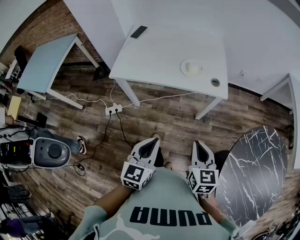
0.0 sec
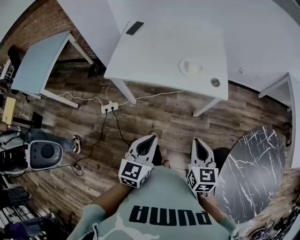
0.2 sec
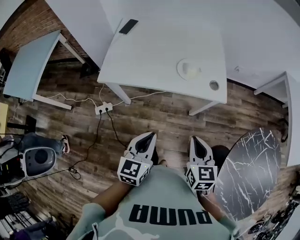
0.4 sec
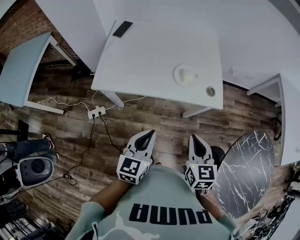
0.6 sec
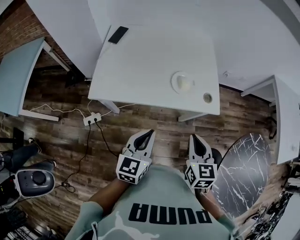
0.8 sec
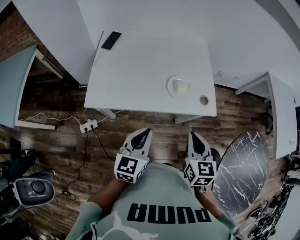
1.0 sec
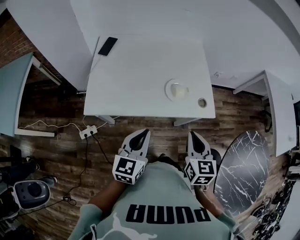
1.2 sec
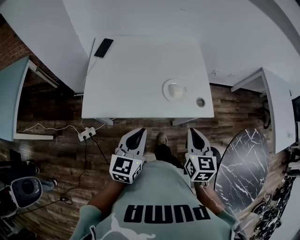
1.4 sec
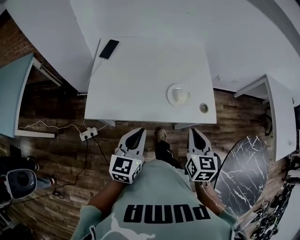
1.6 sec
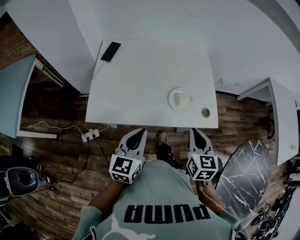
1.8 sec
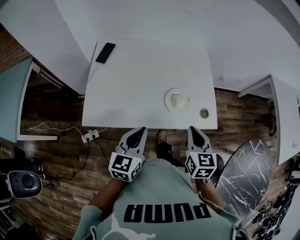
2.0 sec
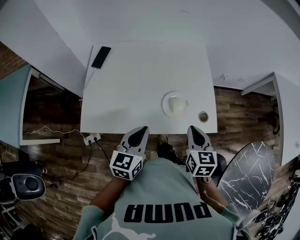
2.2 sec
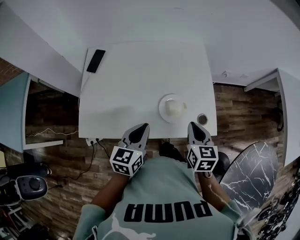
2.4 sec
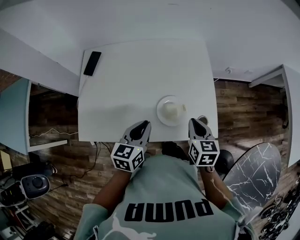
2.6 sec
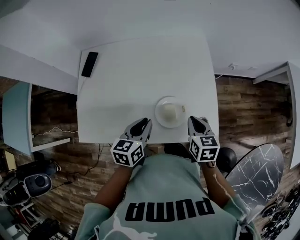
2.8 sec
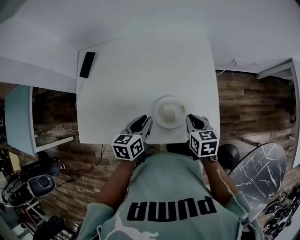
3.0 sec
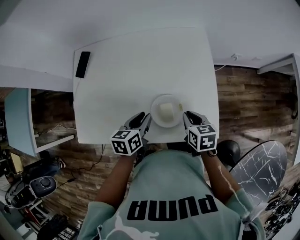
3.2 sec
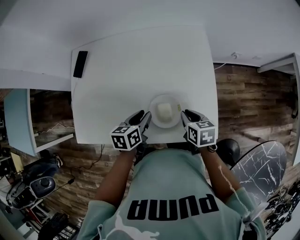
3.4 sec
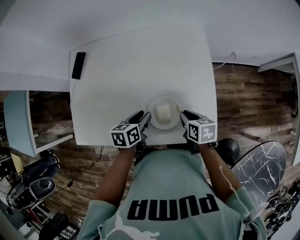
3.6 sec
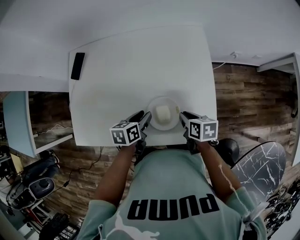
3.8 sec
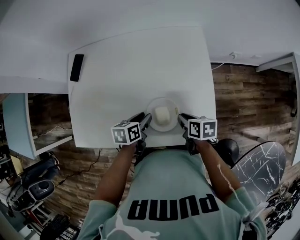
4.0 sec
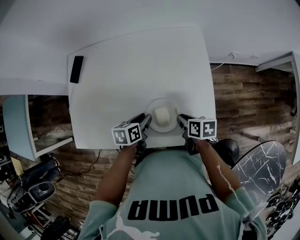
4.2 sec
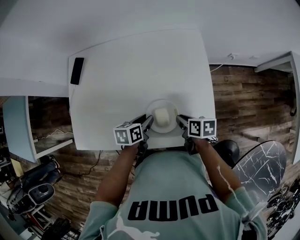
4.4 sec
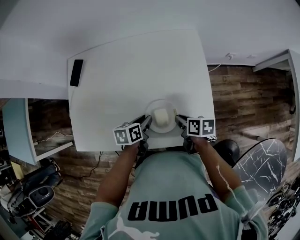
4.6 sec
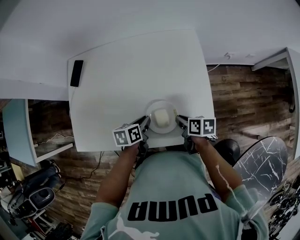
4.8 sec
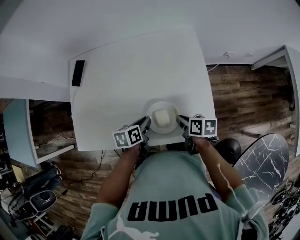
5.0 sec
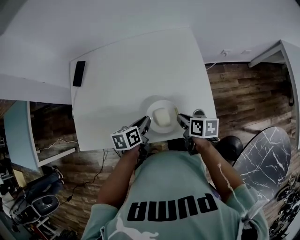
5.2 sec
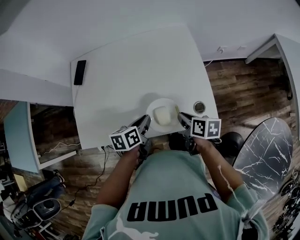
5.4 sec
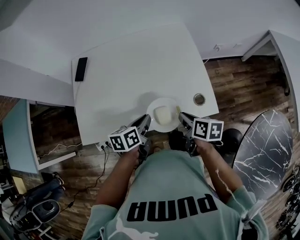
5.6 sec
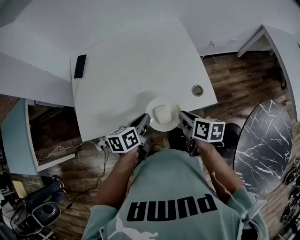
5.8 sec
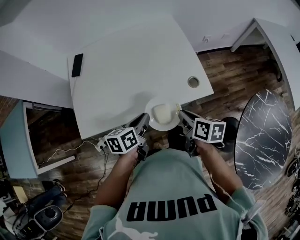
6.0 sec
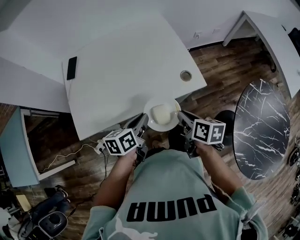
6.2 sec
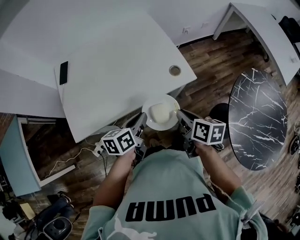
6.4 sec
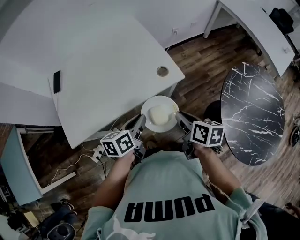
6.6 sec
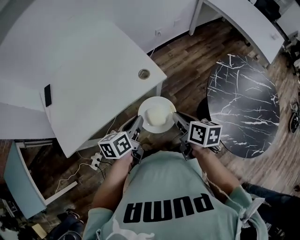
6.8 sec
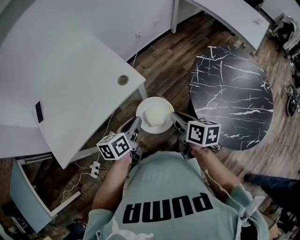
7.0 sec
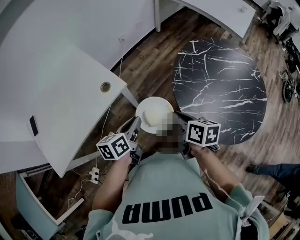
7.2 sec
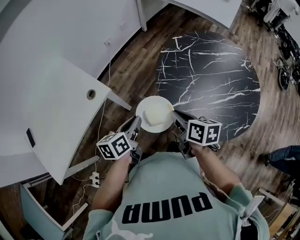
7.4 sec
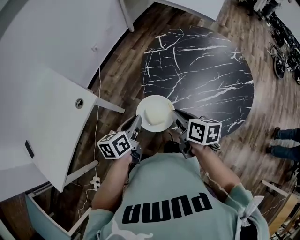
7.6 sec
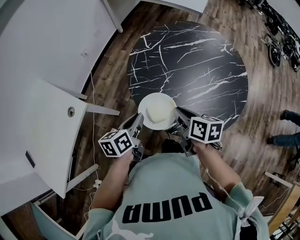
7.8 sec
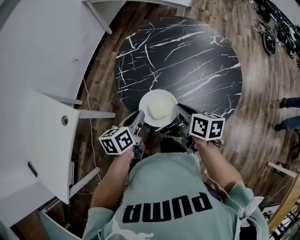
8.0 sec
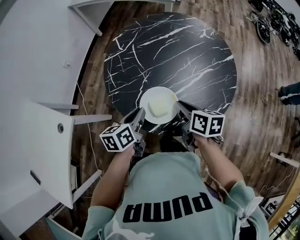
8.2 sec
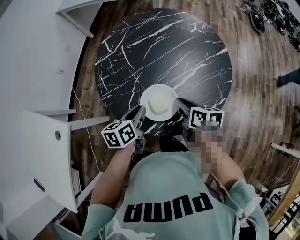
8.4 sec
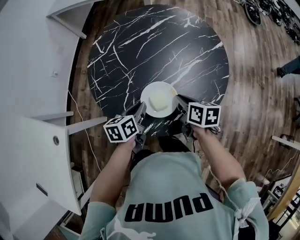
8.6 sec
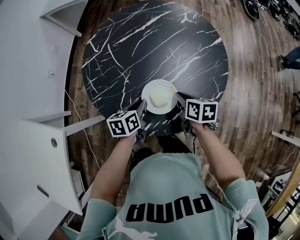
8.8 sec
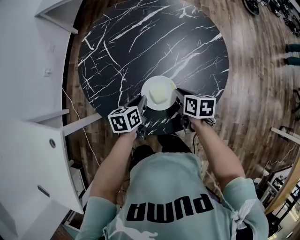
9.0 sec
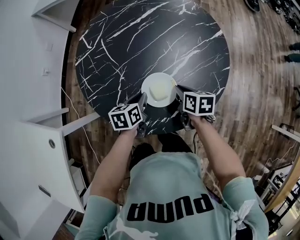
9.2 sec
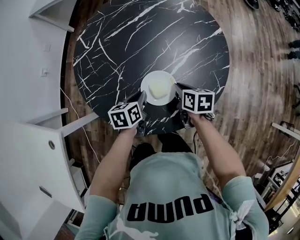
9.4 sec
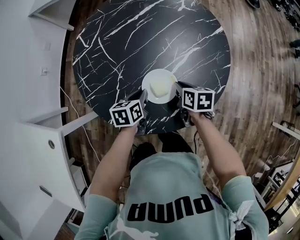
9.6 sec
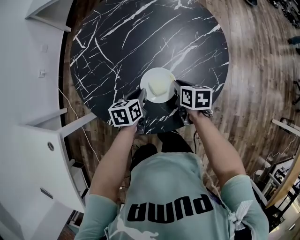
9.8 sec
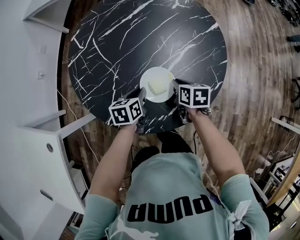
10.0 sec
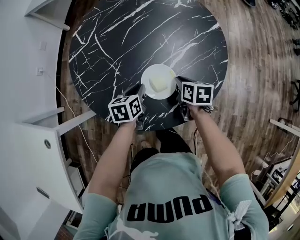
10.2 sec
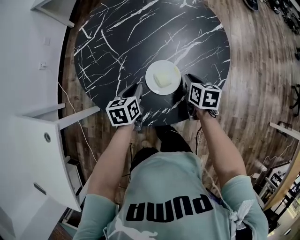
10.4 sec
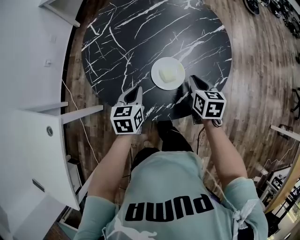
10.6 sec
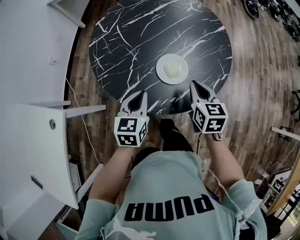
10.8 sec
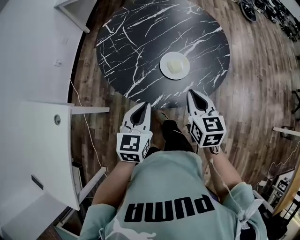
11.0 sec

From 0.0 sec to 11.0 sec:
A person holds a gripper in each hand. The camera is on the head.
From 0.0 sec to 1.6 sec: Both grippers move forward and to the left, about 30 cm.
From 1.6 sec to 3.2 sec: The right gripper is displaced forward and downward by about 25 cm, and changes its angle by roughly 30 degrees. Meanwhile the left gripper goes about 30 cm forward, downward and to the right, swivels roughly 30 degrees, and opens.
From 3.2 sec to 4.8 sec: The left gripper moves downward, roughly 5 cm; the right gripper moves some 5 cm, and turns by some 30 degrees.
From 4.8 sec to 6.2 sec: Both grippers move backward and upward, approximately 25 cm. The left gripper changes its angle by some 20 degrees; the right gripper turns by about 30 degrees.
From 6.2 sec to 7.8 sec: Both grippers are carried about 50 cm. The left gripper rotates about 40 degrees, while the right gripper turns by roughly 40 degrees.
From 7.8 sec to 9.4 sec: Both grippers move to the right, downward and forward, roughly 25 cm. The right gripper changes its angle by about 20 degrees; the left gripper swivels about 30 degrees.
From 9.4 sec to 11.0 sec: The two grippers go some 25 cm backward and upward. The left gripper turns by about 40 degrees. The right gripper rotates some 30 degrees.

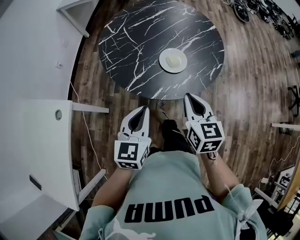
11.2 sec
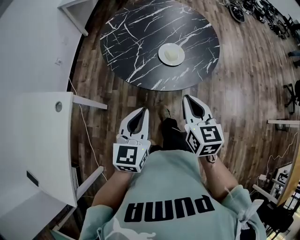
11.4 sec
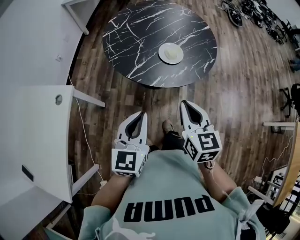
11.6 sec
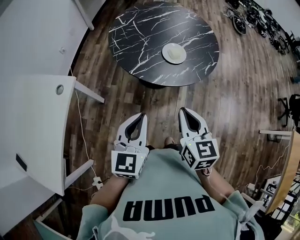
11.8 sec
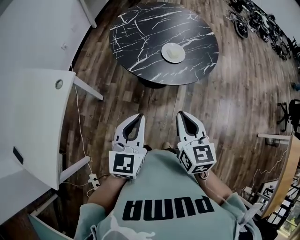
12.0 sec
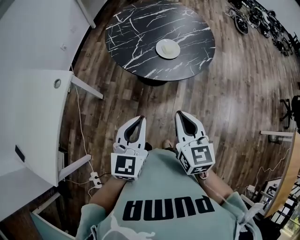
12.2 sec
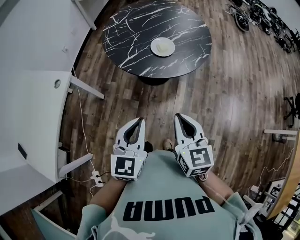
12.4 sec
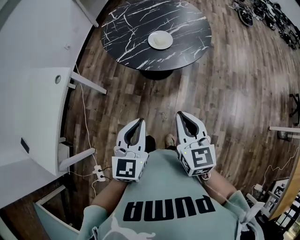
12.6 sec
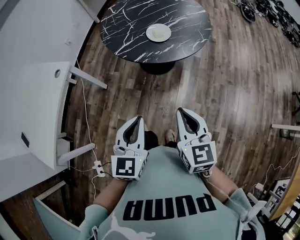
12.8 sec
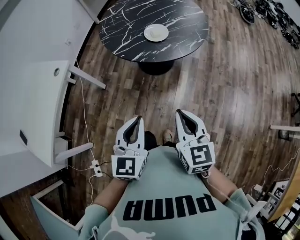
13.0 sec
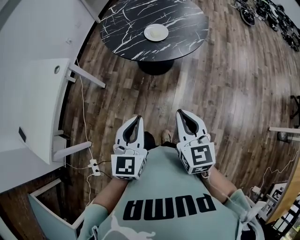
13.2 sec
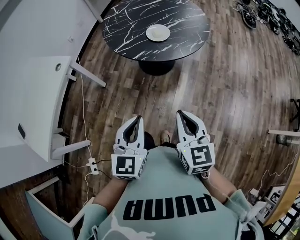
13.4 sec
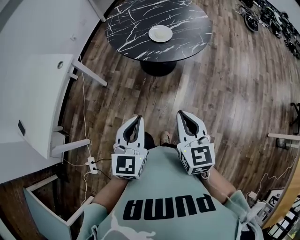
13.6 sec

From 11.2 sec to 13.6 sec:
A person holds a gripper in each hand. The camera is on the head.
From 11.2 sec to 12.4 sec: Both grippers move backward, some 20 cm.
From 12.4 sec to 13.6 sec: The two grippers go roughly 10 cm backward and to the right.

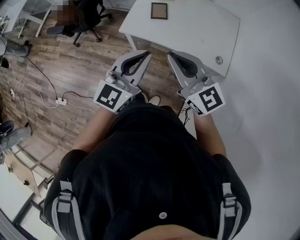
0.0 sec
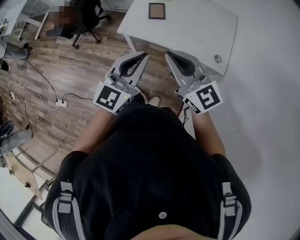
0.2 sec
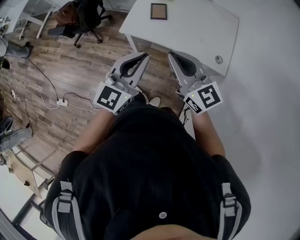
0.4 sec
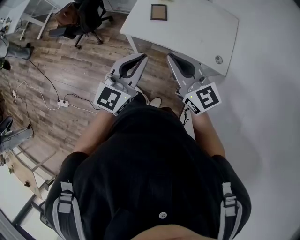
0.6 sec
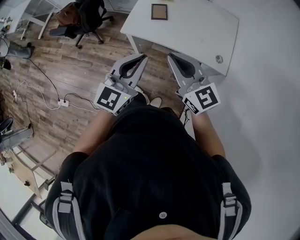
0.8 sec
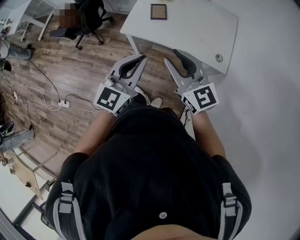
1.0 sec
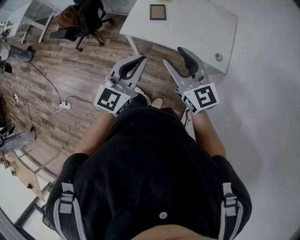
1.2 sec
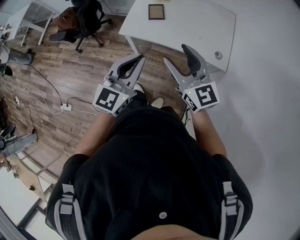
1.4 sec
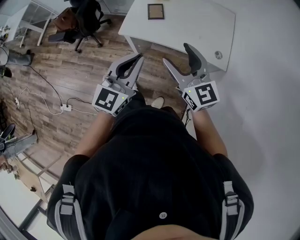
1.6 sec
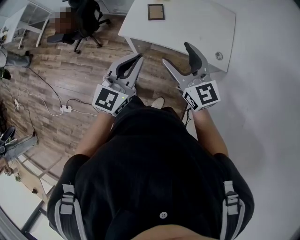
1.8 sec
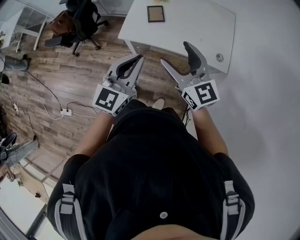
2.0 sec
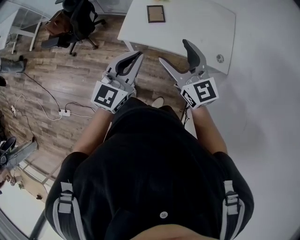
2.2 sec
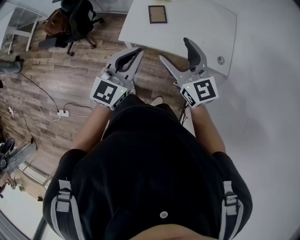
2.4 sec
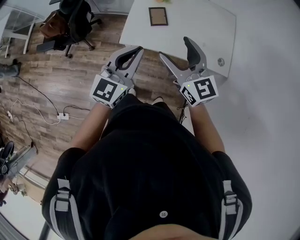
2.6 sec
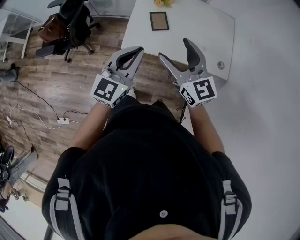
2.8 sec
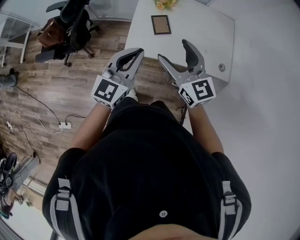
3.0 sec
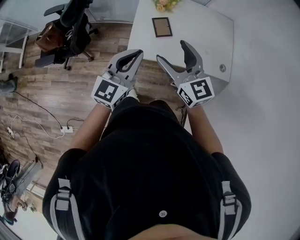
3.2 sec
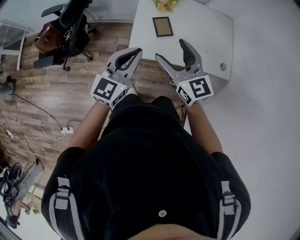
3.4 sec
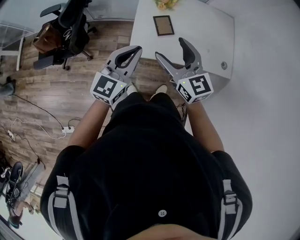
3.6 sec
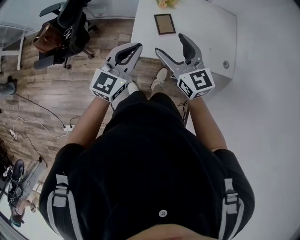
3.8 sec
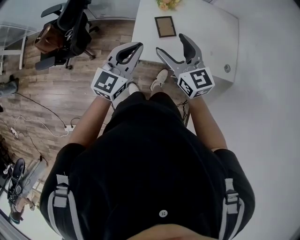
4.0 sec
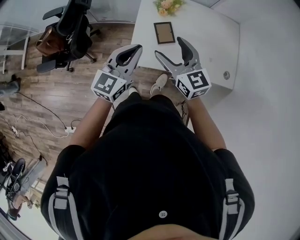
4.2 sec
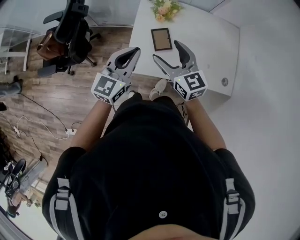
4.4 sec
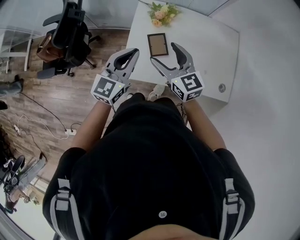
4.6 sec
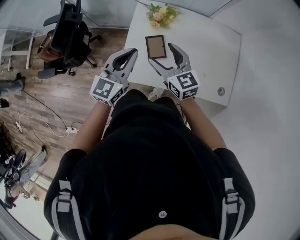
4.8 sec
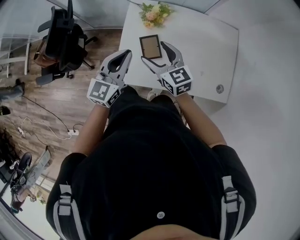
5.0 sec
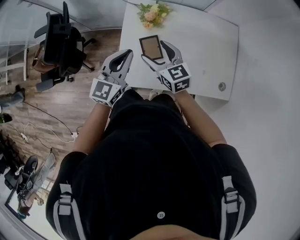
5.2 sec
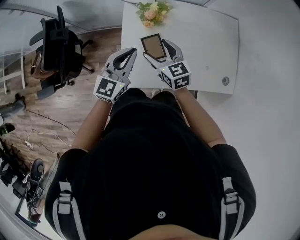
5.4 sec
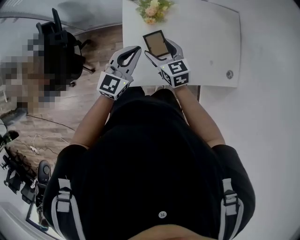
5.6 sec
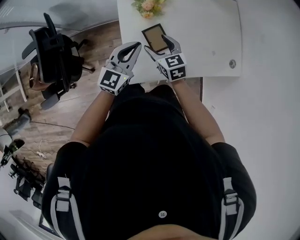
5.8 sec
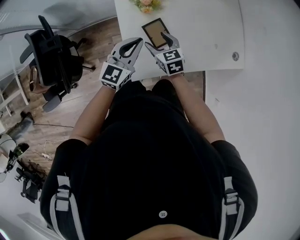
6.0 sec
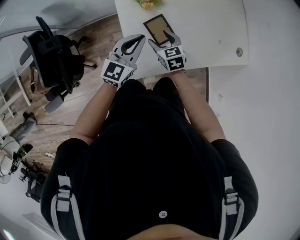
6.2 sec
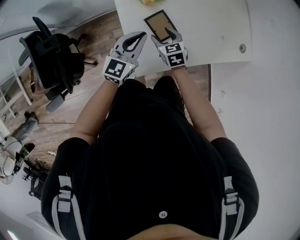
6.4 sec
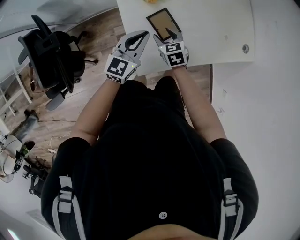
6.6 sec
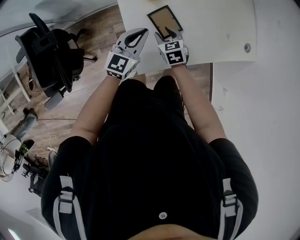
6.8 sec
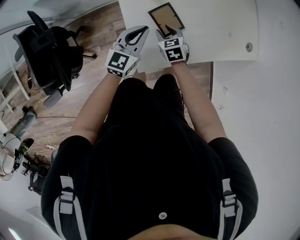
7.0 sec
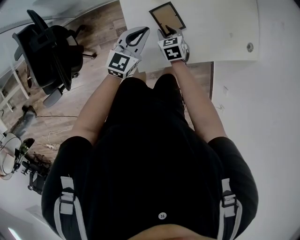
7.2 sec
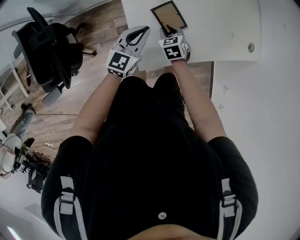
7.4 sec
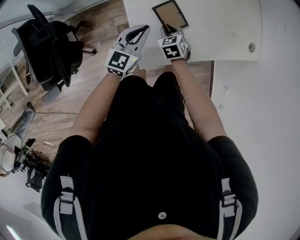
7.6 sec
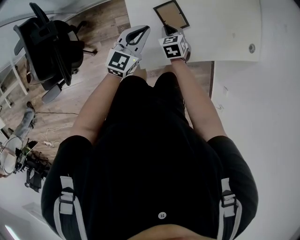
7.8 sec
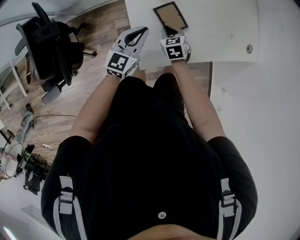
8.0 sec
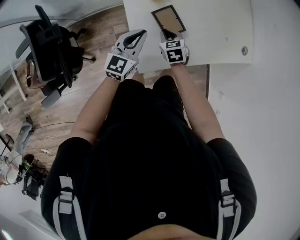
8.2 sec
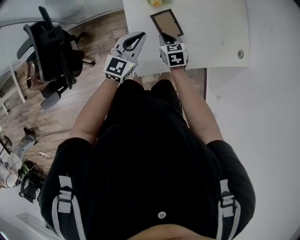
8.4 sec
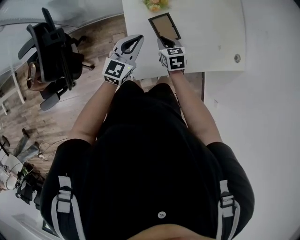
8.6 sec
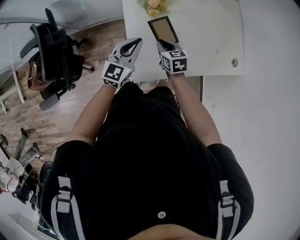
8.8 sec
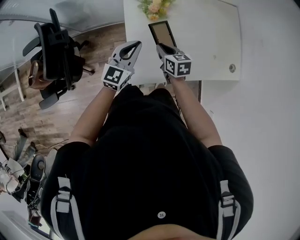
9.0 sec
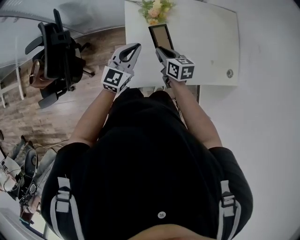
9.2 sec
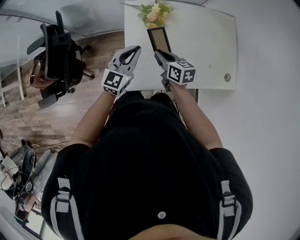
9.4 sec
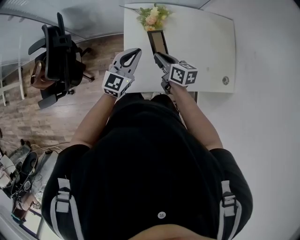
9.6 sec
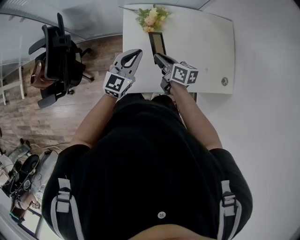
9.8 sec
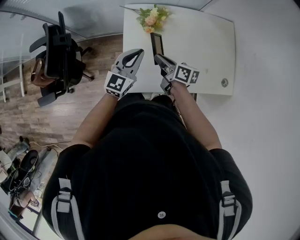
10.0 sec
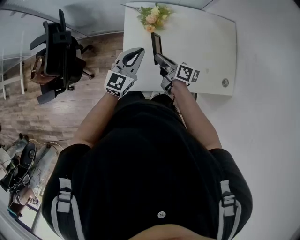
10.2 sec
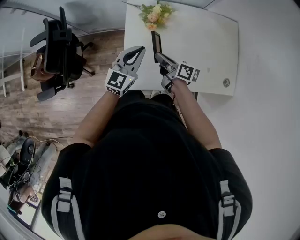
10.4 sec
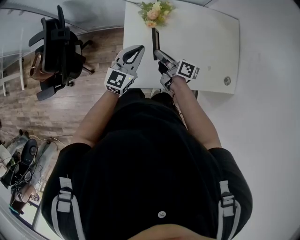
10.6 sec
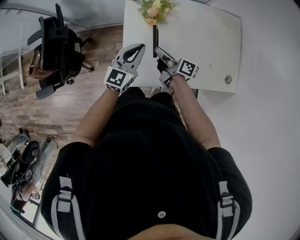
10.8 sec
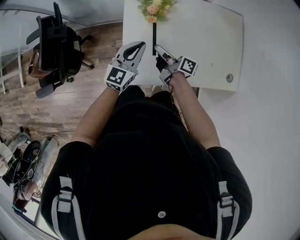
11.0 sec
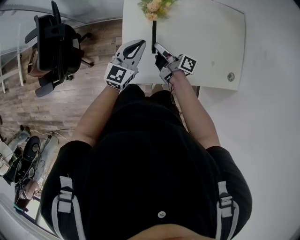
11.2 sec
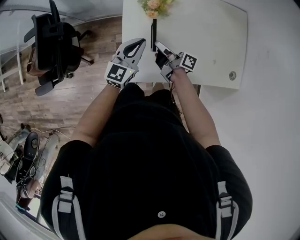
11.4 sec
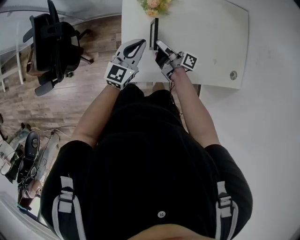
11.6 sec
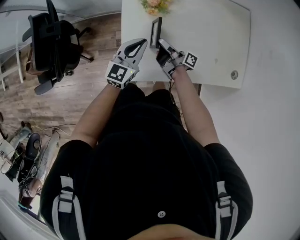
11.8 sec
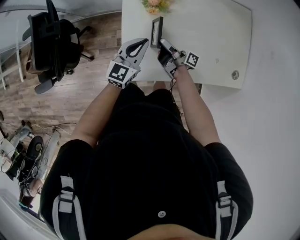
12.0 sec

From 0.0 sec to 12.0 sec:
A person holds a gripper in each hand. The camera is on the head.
From 0.0 sec to 1.6 sec: The right gripper opens up.
From 1.6 sec to 3.0 sec: Both grippers travel together forward and to the left, roughly 25 cm.
From 3.0 sec to 4.4 sec: The left gripper heads forward, covering approximately 15 cm. The right gripper heads forward and downward, covering approximately 15 cm.
From 4.4 sec to 6.0 sec: The left gripper heads forward and downward, covering roughly 20 cm, and turns by some 20 degrees; the right gripper moves downward and forward, roughly 25 cm, and changes its angle by approximately 40 degrees.
From 6.0 sec to 7.6 sec: Both grippers move downward, approximately 10 cm. The right gripper turns by roughly 20 degrees, and closes.
From 7.6 sec to 9.0 sec: The grippers both shift upward by approximately 15 cm. The right gripper turns by approximately 30 degrees.
From 9.0 sec to 10.4 sec: The right gripper goes roughly 5 cm upward, and changes its angle by approximately 40 degrees; the left gripper travels to the right by about 5 cm.
From 10.4 sec to 12.0 sec: The two grippers go roughly 10 cm downward. The right gripper rotates about 40 degrees.
